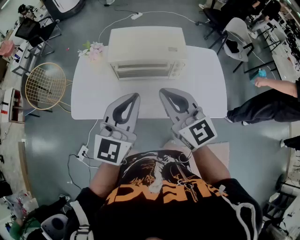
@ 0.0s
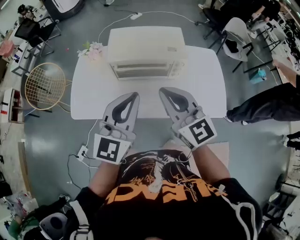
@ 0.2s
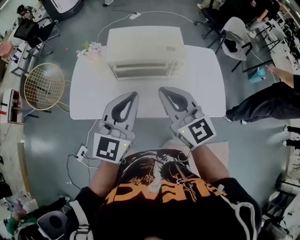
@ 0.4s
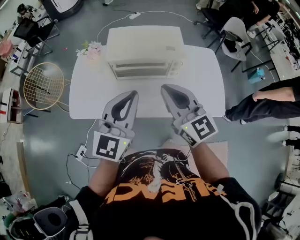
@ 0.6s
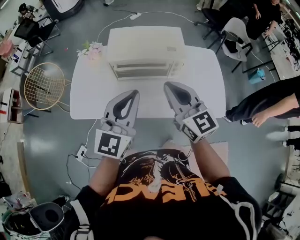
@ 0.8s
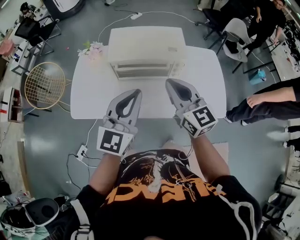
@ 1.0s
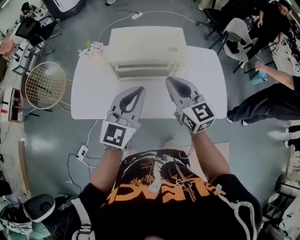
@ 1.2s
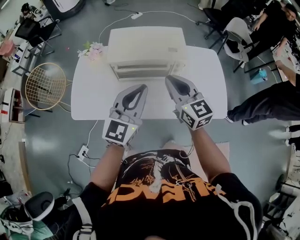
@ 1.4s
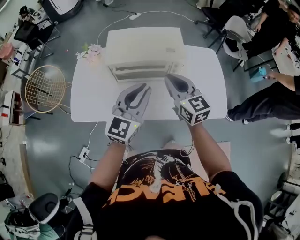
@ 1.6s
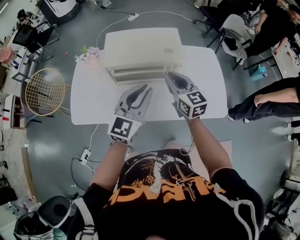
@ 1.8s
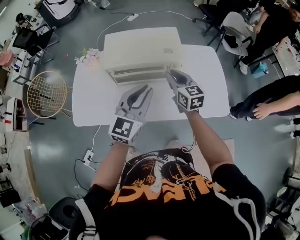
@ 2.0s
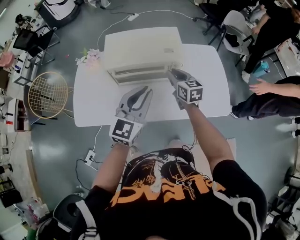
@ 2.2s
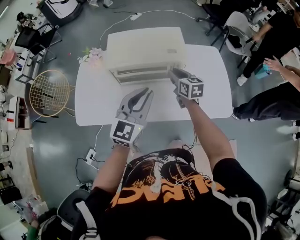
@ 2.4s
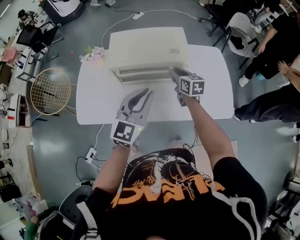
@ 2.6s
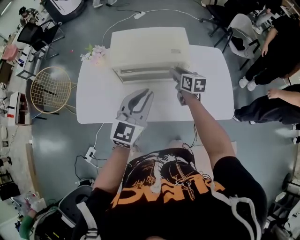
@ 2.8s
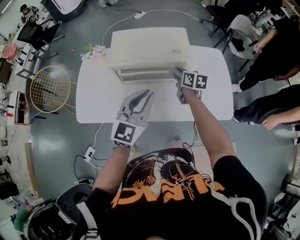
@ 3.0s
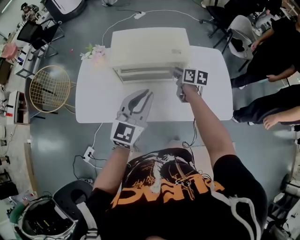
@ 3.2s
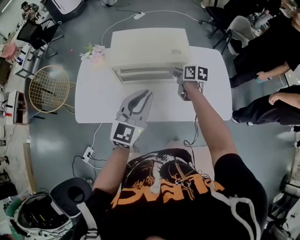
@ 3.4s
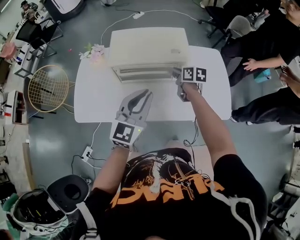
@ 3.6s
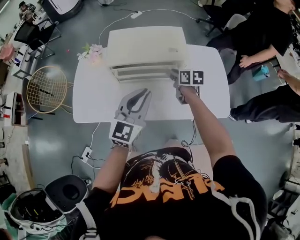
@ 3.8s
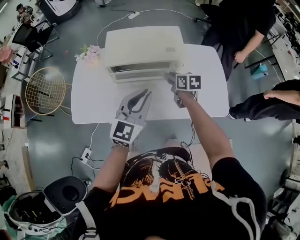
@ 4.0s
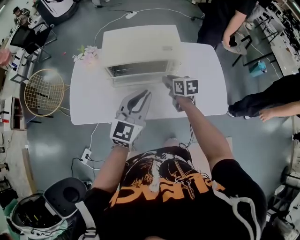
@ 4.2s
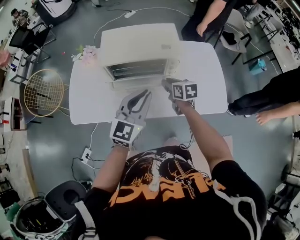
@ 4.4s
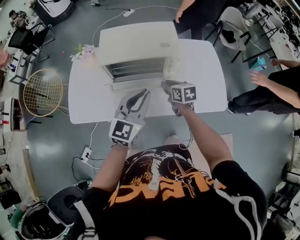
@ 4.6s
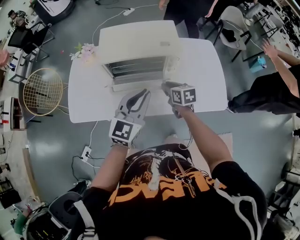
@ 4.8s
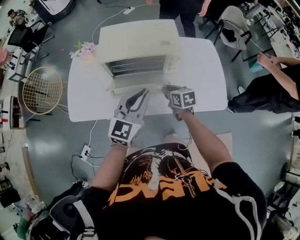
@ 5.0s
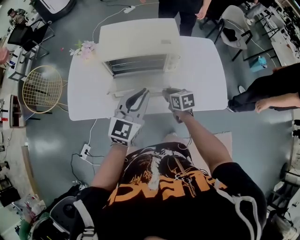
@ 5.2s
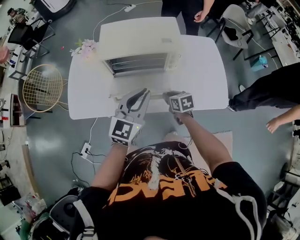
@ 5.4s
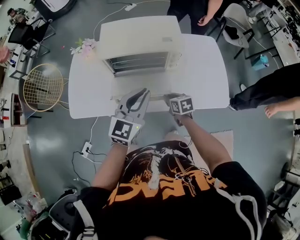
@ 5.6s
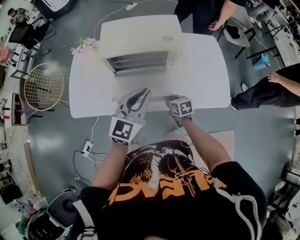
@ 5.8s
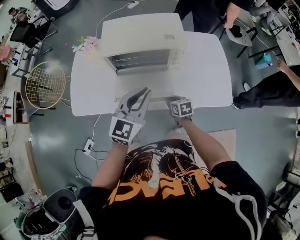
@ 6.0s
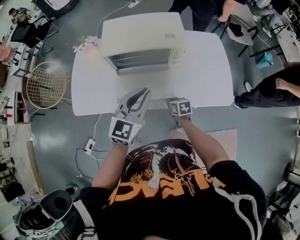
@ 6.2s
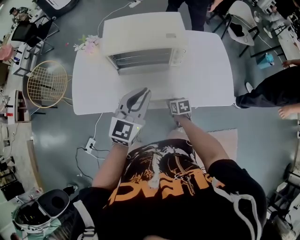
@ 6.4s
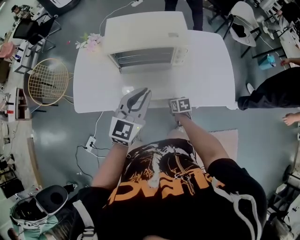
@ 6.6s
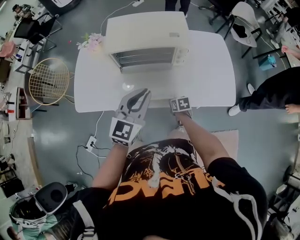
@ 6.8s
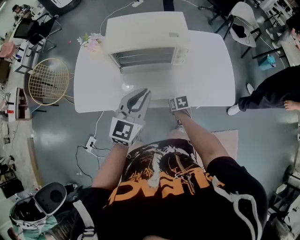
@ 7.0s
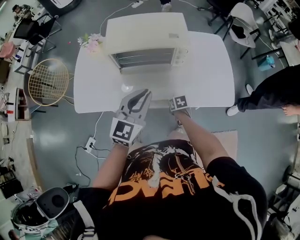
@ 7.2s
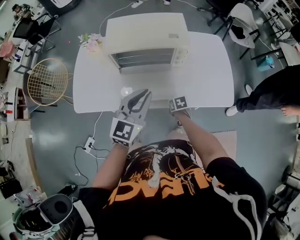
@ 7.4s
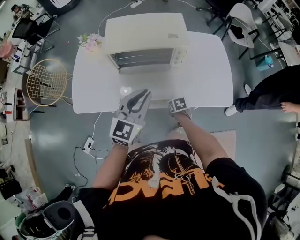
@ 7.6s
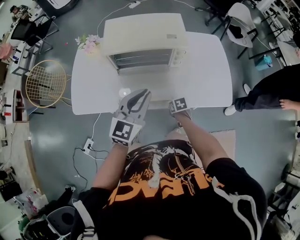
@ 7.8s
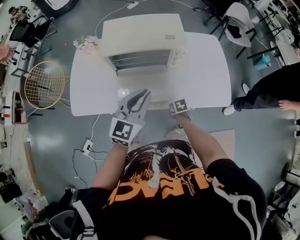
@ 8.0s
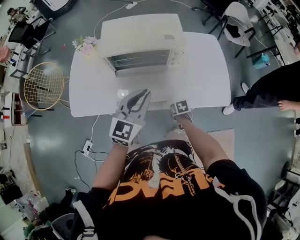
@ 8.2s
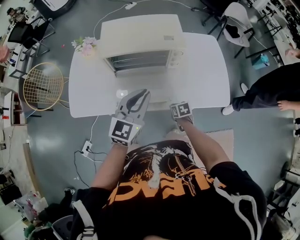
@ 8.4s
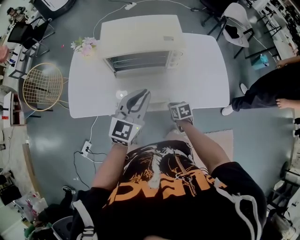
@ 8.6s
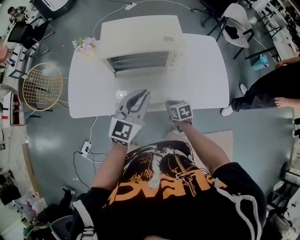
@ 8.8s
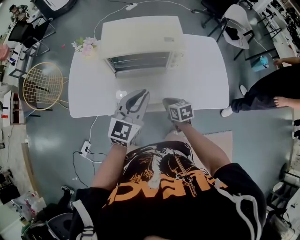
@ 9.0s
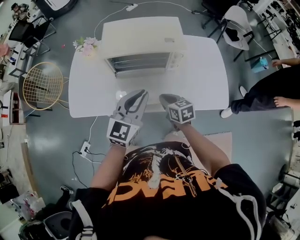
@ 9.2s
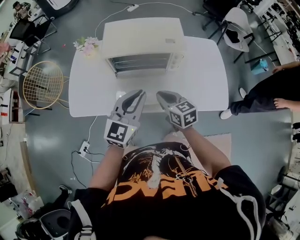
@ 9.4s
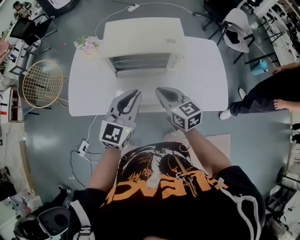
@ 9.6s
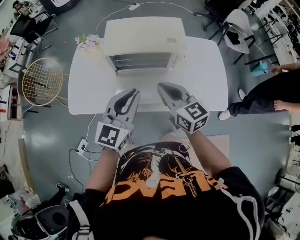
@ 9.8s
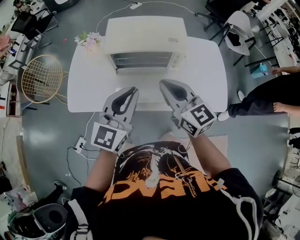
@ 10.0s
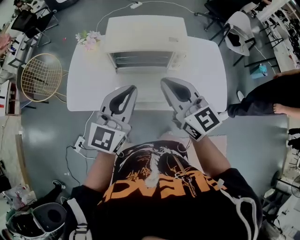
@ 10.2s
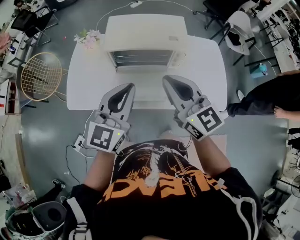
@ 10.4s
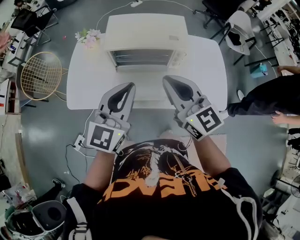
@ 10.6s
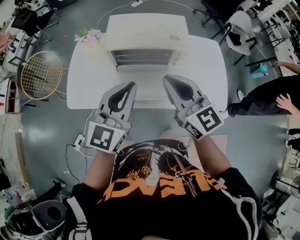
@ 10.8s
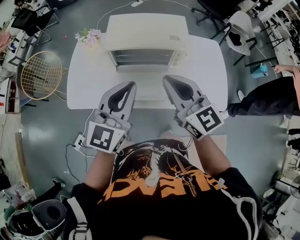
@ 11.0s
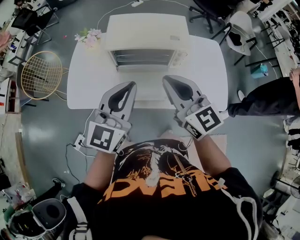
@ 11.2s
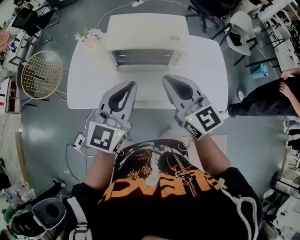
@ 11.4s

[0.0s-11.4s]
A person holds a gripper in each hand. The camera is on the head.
0.0s to 1.4s: The left gripper shifts approximately 5 cm downward. The right gripper travels forward and downward by roughly 10 cm.
1.4s to 2.8s: The right gripper goes about 20 cm downward and forward, changes its angle by approximately 30 degrees, and opens.
2.8s to 4.2s: The right gripper moves backward, about 5 cm.
4.2s to 5.6s: The right gripper shifts some 15 cm downward and backward.
5.6s to 7.2s: The right gripper goes approximately 10 cm downward.
7.2s to 8.6s: The grippers move only a little.
8.6s to 10.0s: The right gripper moves upward, roughly 35 cm, and angles its fingers upward, by approximately 50 degrees; the left gripper travels upward and to the left by some 10 cm.
10.0s to 11.4s: The grippers move only a little.

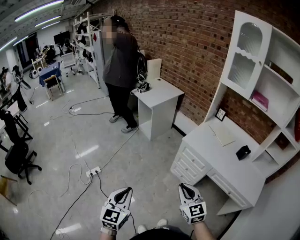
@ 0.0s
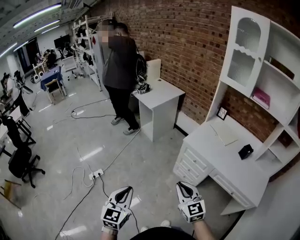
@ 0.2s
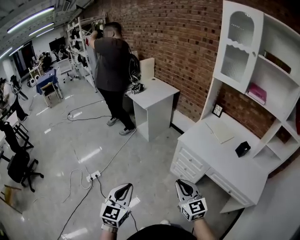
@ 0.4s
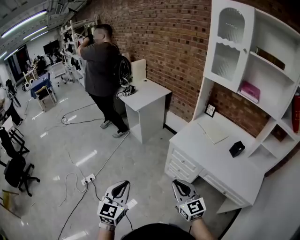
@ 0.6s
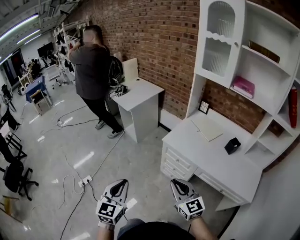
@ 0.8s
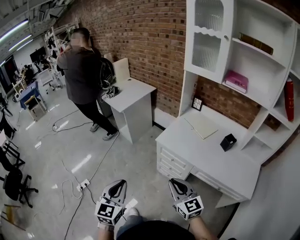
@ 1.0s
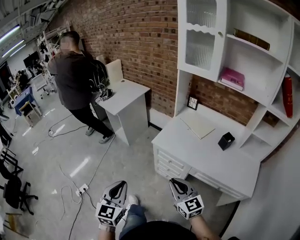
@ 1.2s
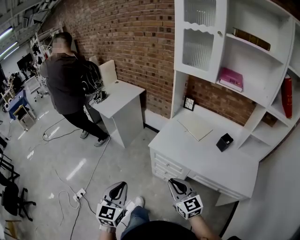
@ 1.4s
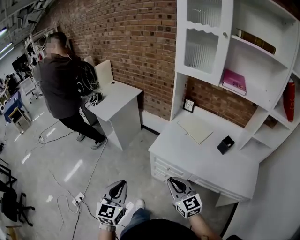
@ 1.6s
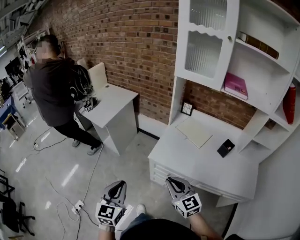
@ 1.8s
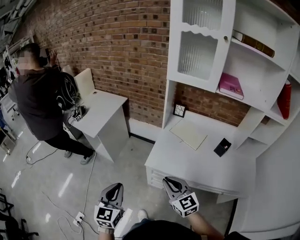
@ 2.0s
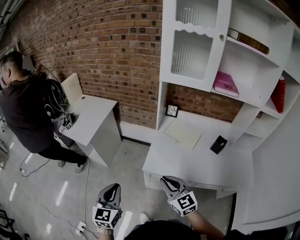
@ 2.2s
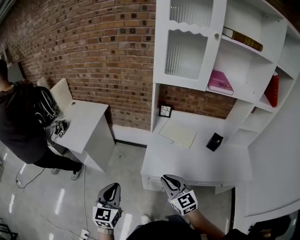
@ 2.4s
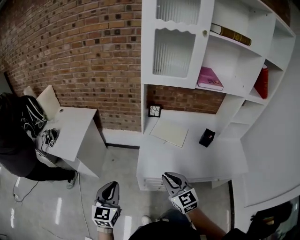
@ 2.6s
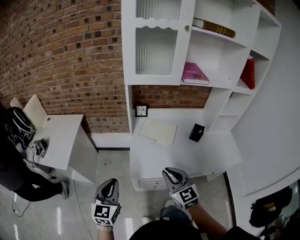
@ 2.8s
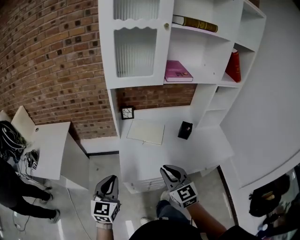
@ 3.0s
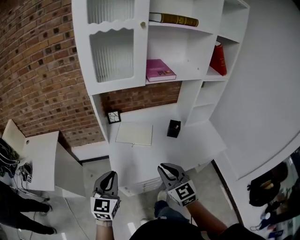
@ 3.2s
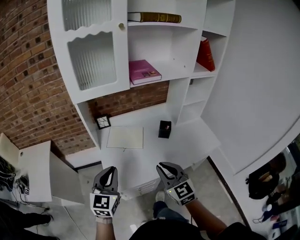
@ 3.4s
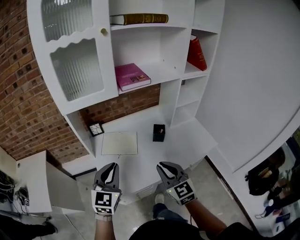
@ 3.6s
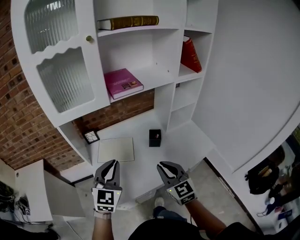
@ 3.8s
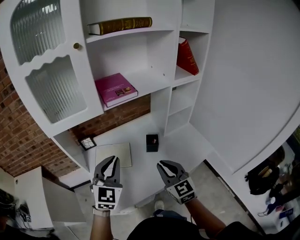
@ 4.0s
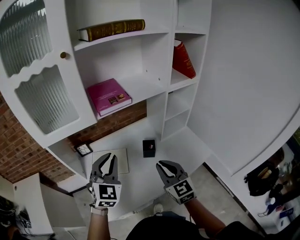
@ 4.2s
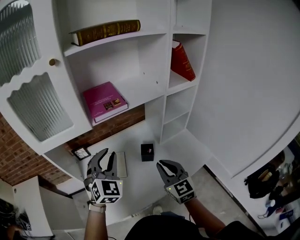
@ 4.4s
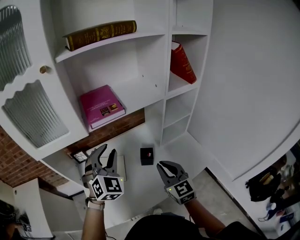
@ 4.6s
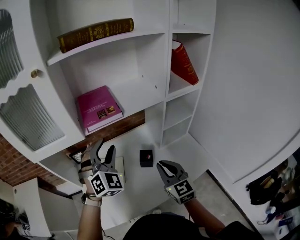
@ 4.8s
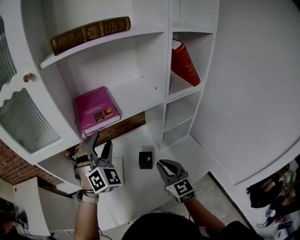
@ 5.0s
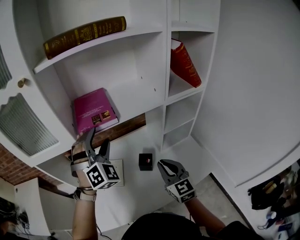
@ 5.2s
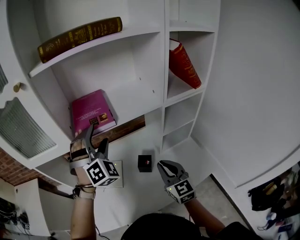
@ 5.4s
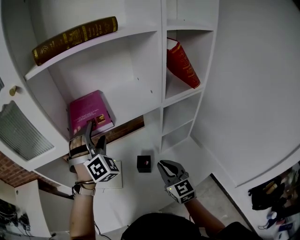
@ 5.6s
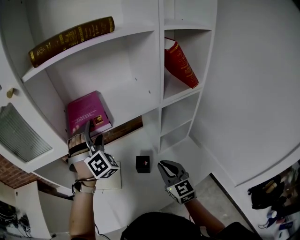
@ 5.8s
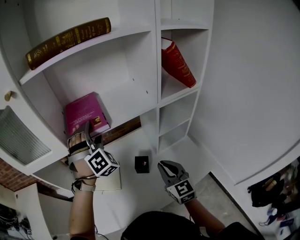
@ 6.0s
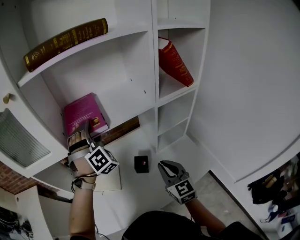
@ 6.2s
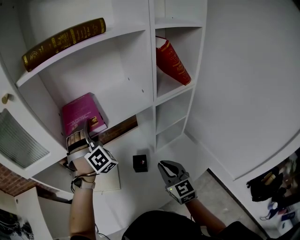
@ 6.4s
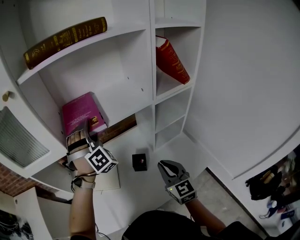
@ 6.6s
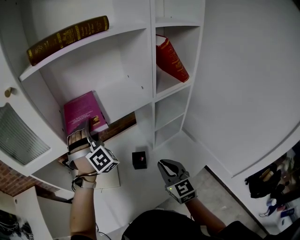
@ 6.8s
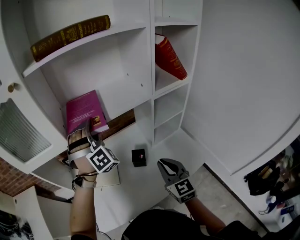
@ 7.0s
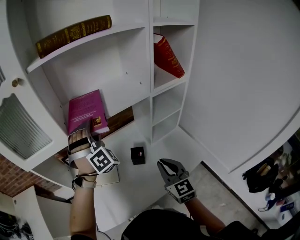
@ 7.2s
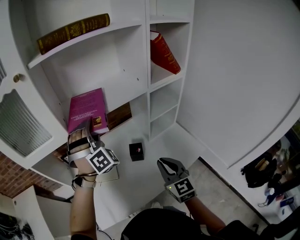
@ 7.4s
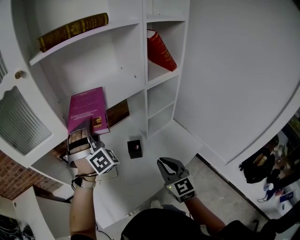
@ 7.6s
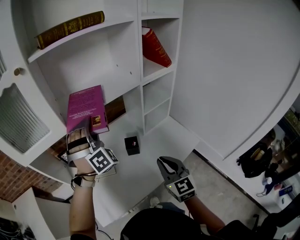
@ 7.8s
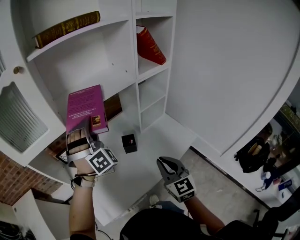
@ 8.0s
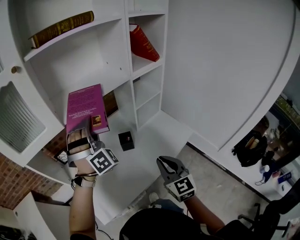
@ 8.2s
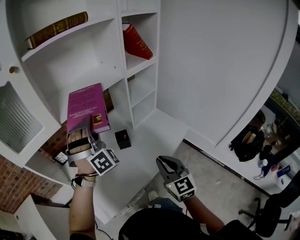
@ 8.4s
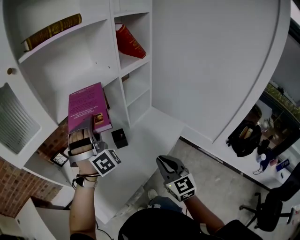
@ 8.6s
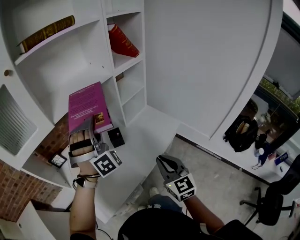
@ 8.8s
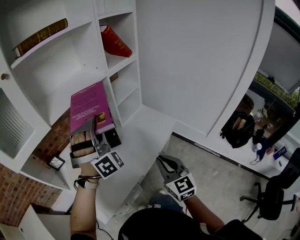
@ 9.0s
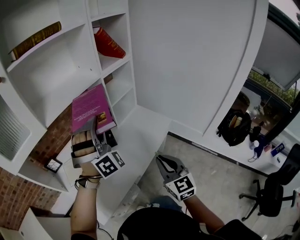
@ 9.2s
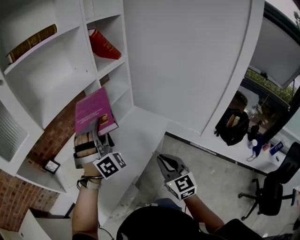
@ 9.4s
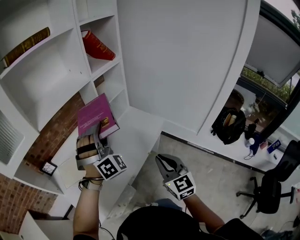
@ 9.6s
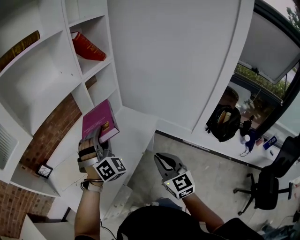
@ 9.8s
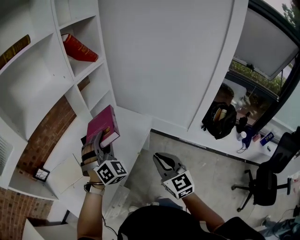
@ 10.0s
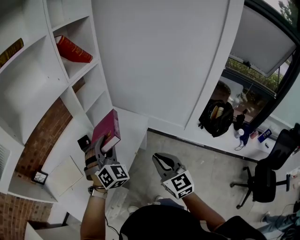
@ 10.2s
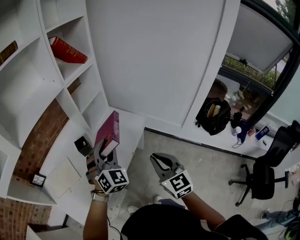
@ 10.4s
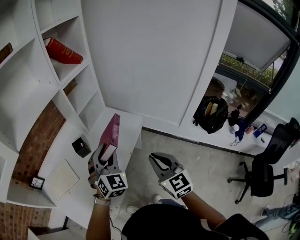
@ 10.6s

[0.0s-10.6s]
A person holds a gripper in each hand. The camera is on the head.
0.0s to 1.6s: The grippers both shift forward and to the right by roughly 30 cm.
1.6s to 3.0s: The right gripper changes place by about 20 cm, and turns by some 40 degrees. The left gripper shifts by roughly 30 cm, and swivels about 40 degrees.
3.0s to 4.6s: The right gripper travels to the right and forward by about 35 cm, and rotates roughly 20 degrees; the left gripper goes about 50 cm forward and to the right, and rotates around the line of its fingers by roughly 50 degrees, clockwise from behind.
4.6s to 6.0s: The right gripper goes some 10 cm to the right and forward; the left gripper shifts some 15 cm forward, turns by some 40 degrees, and opens.
6.0s to 7.6s: The two grippers go some 10 cm backward. The left gripper closes its fingers.
7.6s to 9.0s: The left gripper is displaced backward and to the right by about 20 cm, and rotates roughly 20 degrees; the right gripper is displaced backward by some 15 cm.
9.0s to 10.6s: The right gripper moves to the right, approximately 15 cm. The left gripper moves to the right and downward, some 20 cm, and rolls counterclockwise, seen from behind, by approximately 40 degrees.

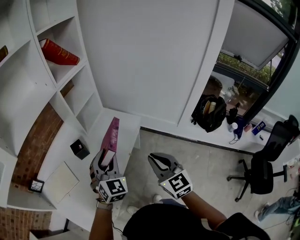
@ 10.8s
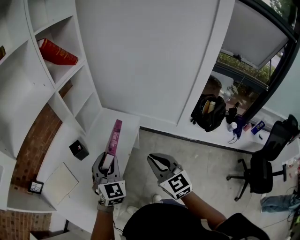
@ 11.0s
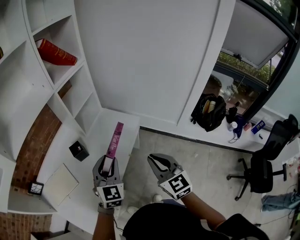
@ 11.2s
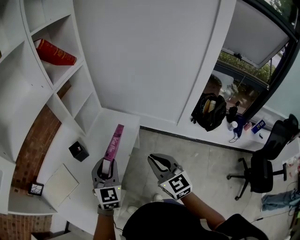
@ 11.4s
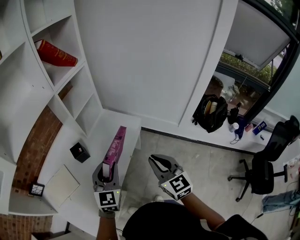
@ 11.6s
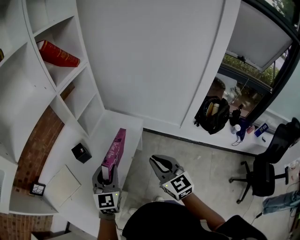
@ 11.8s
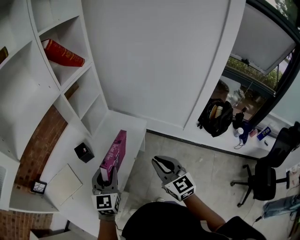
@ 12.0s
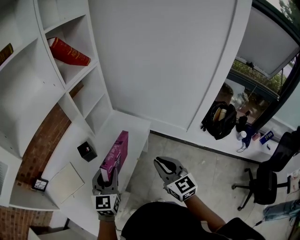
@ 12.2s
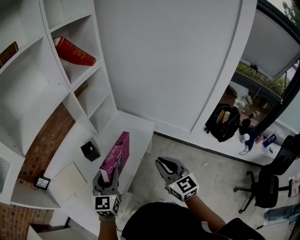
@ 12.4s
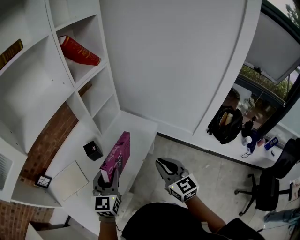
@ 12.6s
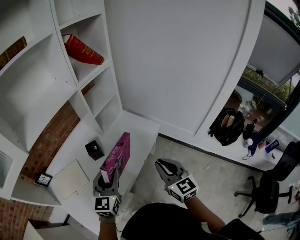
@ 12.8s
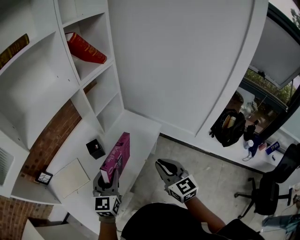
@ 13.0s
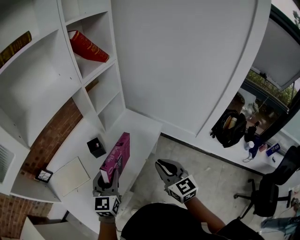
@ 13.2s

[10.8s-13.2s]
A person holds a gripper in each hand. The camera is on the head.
10.8s to 12.0s: The left gripper changes its angle by approximately 30 degrees.
12.0s to 13.2s: The right gripper moves approximately 5 cm. The left gripper heads to the left, covering some 5 cm.
